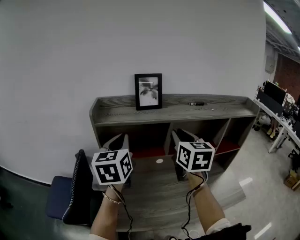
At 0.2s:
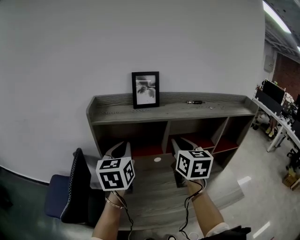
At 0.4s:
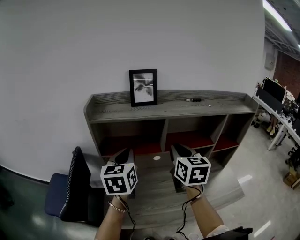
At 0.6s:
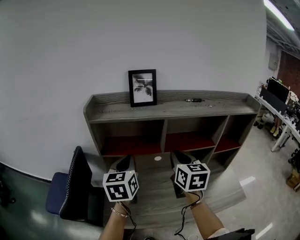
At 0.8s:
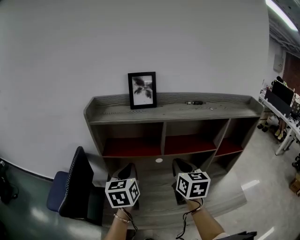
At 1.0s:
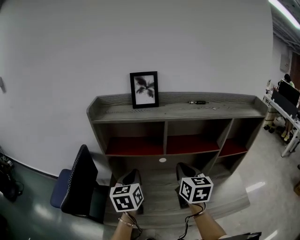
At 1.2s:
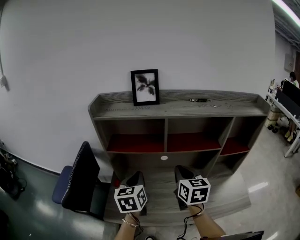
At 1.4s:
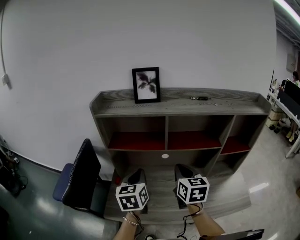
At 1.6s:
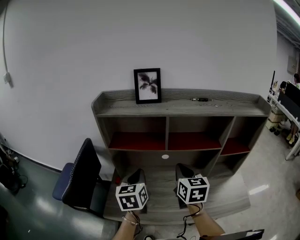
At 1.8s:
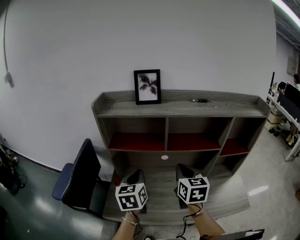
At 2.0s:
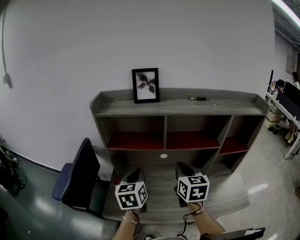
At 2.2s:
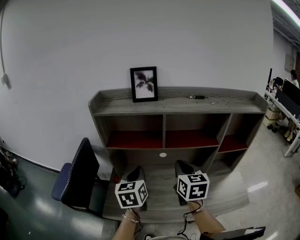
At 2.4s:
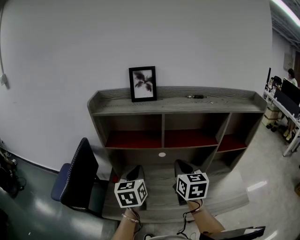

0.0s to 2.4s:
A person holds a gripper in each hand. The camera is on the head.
0.0s to 1.2s: Both grippers travel together downward and backward, roughly 20 cm.
1.2s to 2.4s: There are only small adjustments of the grippers.

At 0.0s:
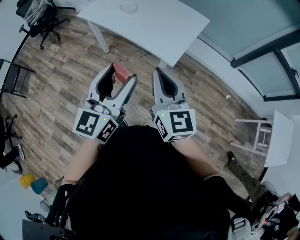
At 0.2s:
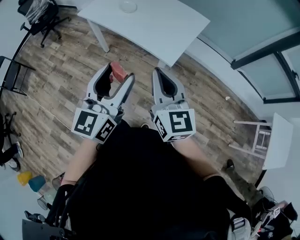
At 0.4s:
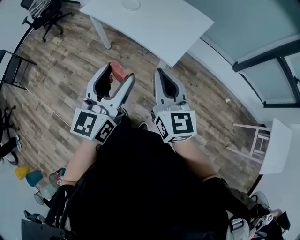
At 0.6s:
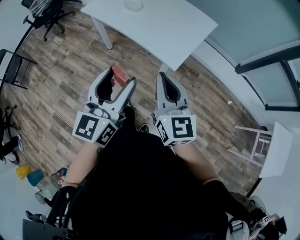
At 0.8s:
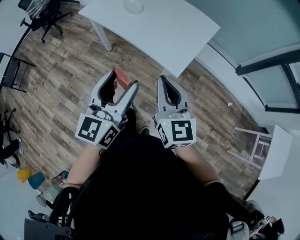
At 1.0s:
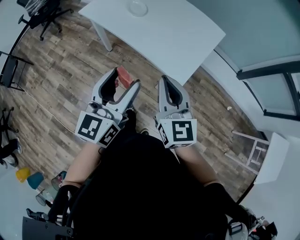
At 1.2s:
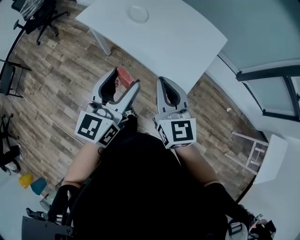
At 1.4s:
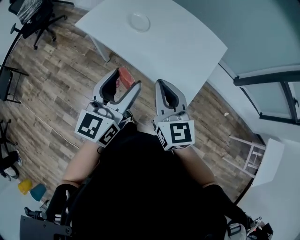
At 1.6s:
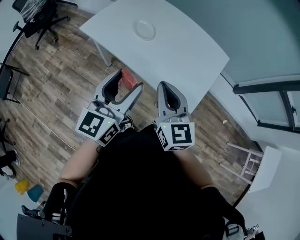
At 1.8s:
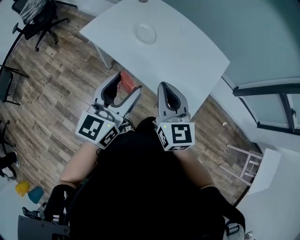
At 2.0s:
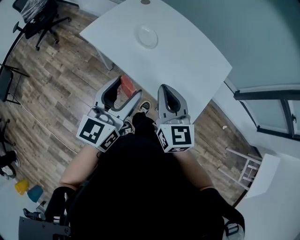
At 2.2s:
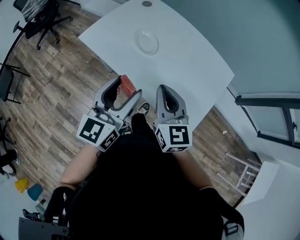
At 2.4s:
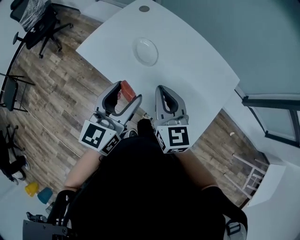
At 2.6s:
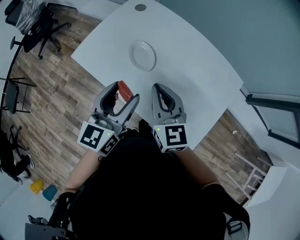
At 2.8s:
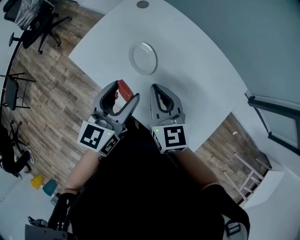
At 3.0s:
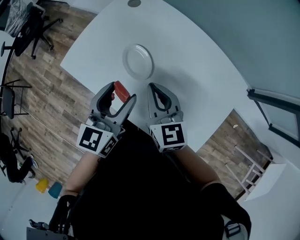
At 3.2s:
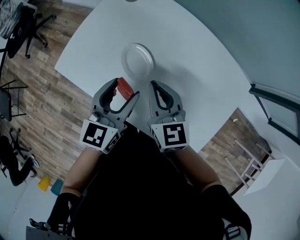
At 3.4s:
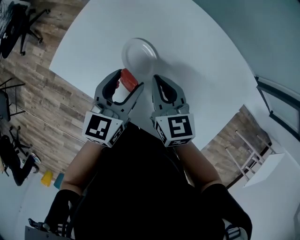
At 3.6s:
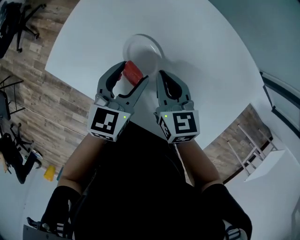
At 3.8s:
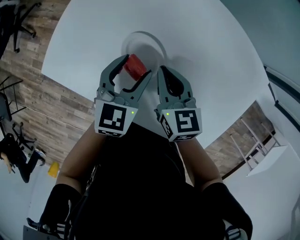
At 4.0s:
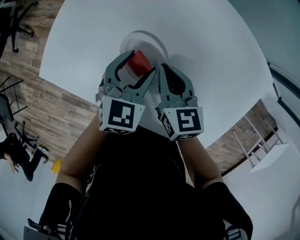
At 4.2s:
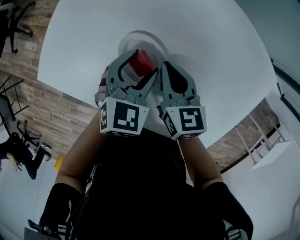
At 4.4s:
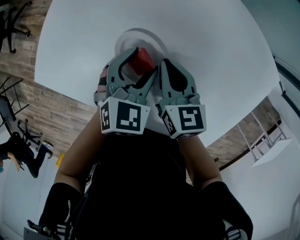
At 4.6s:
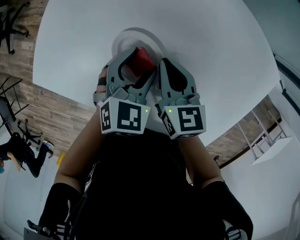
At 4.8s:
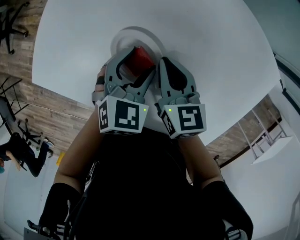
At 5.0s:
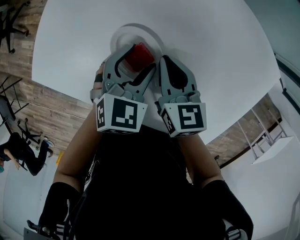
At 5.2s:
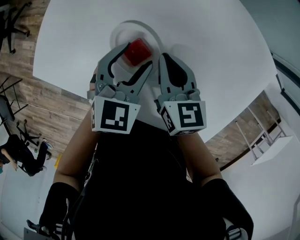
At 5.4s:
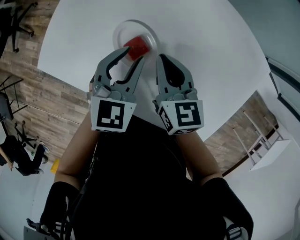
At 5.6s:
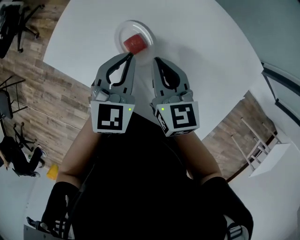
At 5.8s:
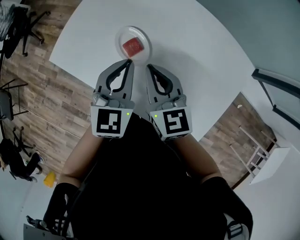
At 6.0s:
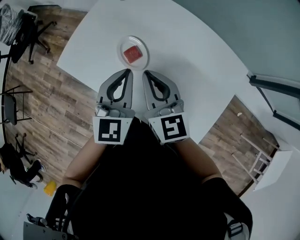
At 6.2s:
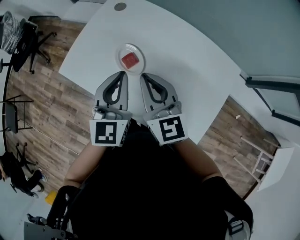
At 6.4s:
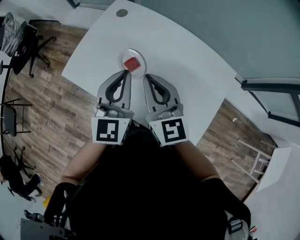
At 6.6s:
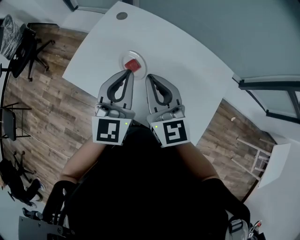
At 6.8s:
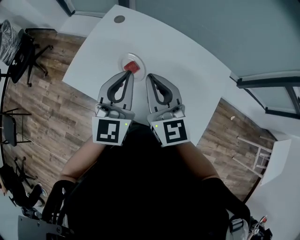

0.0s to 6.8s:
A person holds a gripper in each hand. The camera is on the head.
0.0s to 1.4s: The two grippers go some 20 cm forward.
1.4s to 2.8s: The grippers both shift forward by approximately 25 cm.
2.8s to 4.0s: The two grippers go approximately 20 cm downward and forward. The left gripper swivels approximately 40 degrees, while the right gripper changes its angle by about 20 degrees.
4.0s to 5.4s: The left gripper closes.
5.4s to 6.8s: The two grippers go some 25 cm upward and backward. The left gripper turns by about 30 degrees, and closes its fingers. Meanwhile the right gripper rotates about 30 degrees.

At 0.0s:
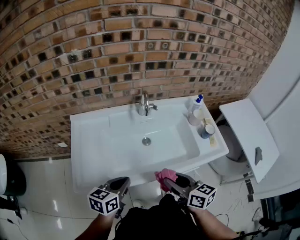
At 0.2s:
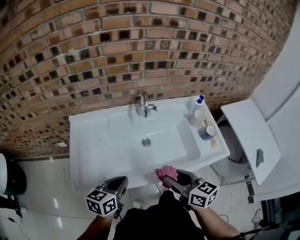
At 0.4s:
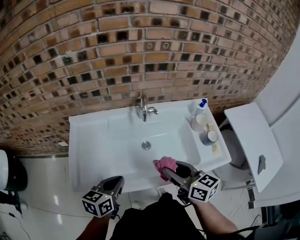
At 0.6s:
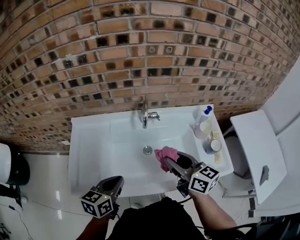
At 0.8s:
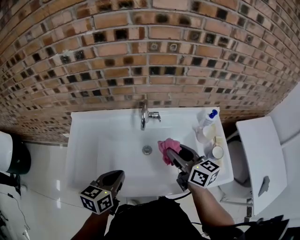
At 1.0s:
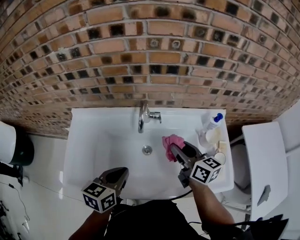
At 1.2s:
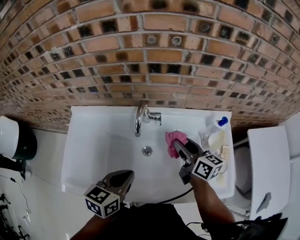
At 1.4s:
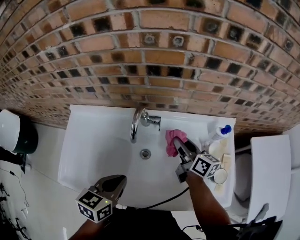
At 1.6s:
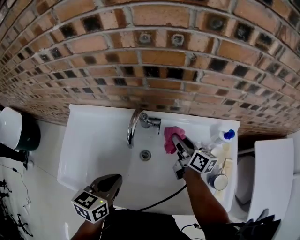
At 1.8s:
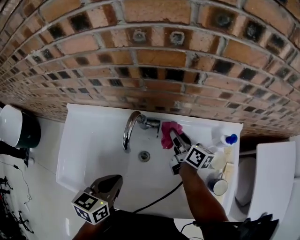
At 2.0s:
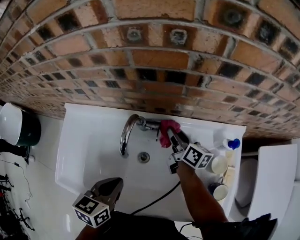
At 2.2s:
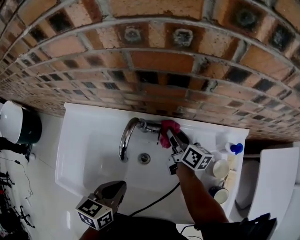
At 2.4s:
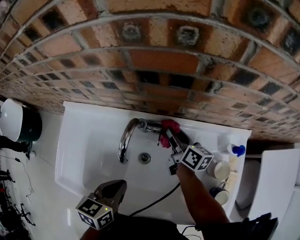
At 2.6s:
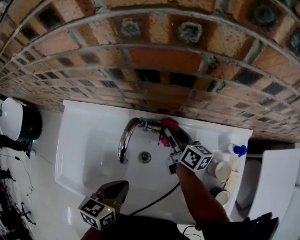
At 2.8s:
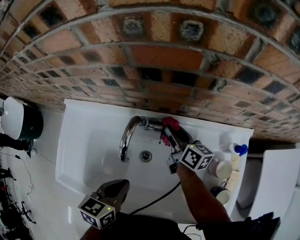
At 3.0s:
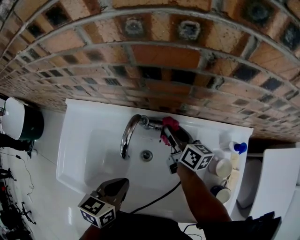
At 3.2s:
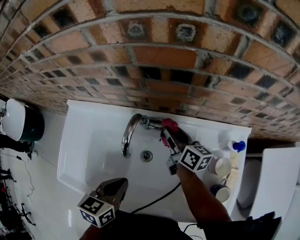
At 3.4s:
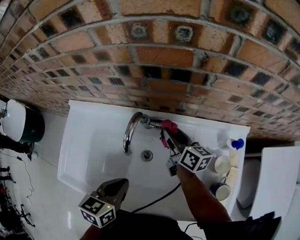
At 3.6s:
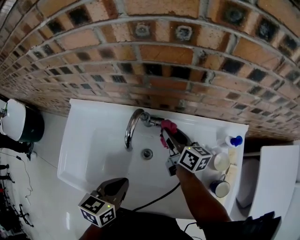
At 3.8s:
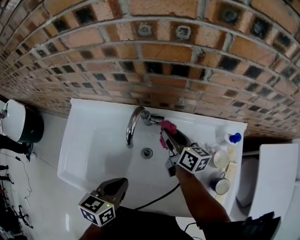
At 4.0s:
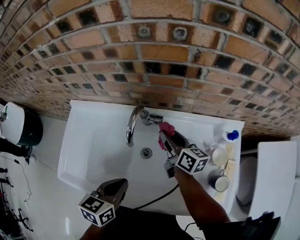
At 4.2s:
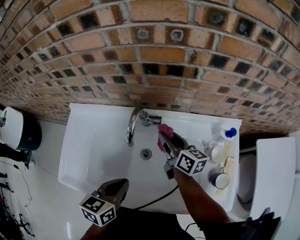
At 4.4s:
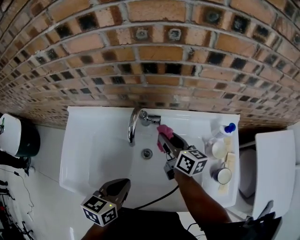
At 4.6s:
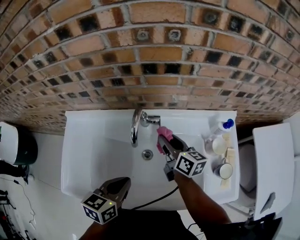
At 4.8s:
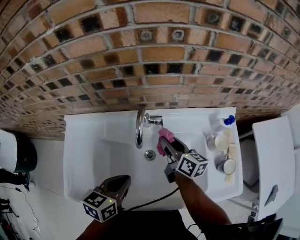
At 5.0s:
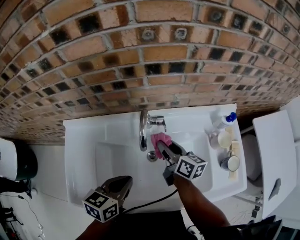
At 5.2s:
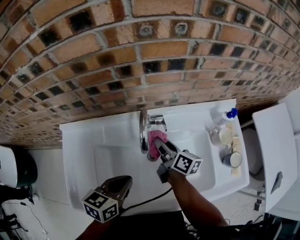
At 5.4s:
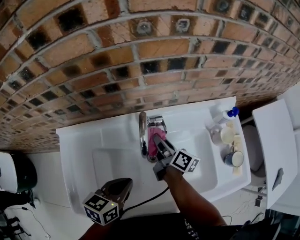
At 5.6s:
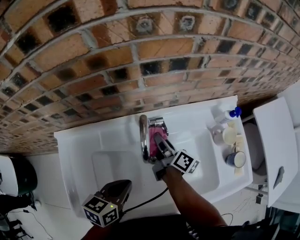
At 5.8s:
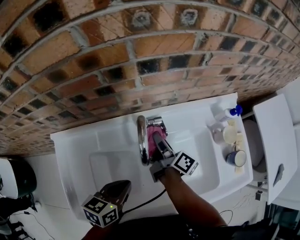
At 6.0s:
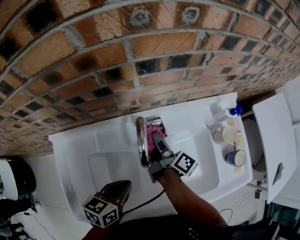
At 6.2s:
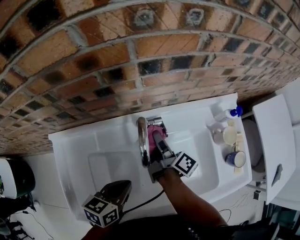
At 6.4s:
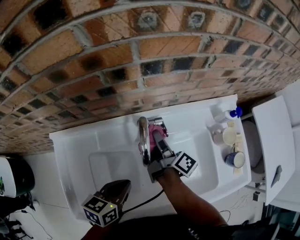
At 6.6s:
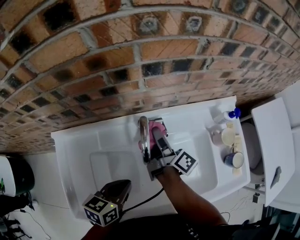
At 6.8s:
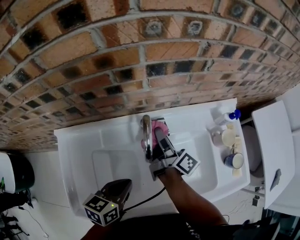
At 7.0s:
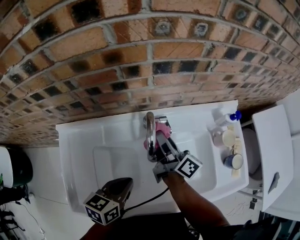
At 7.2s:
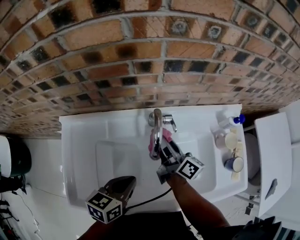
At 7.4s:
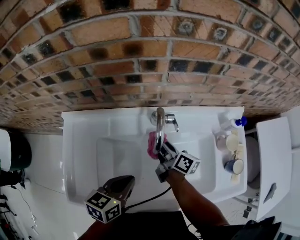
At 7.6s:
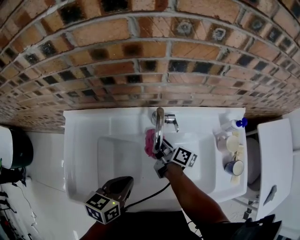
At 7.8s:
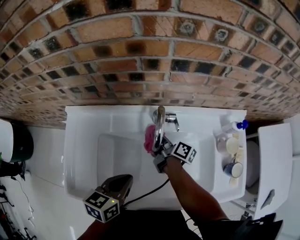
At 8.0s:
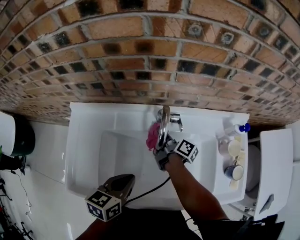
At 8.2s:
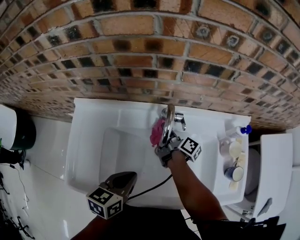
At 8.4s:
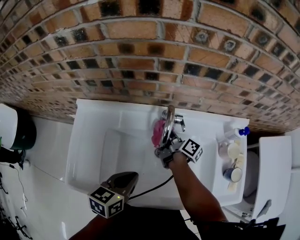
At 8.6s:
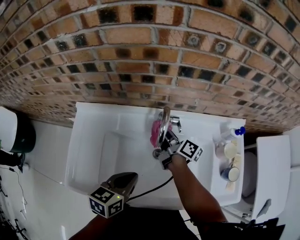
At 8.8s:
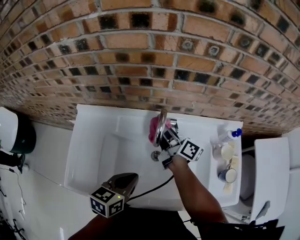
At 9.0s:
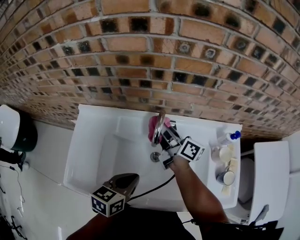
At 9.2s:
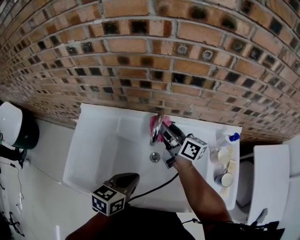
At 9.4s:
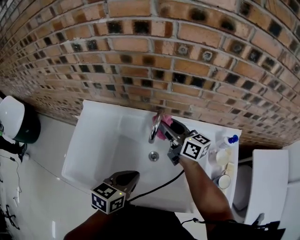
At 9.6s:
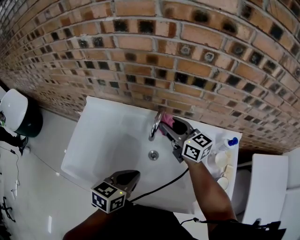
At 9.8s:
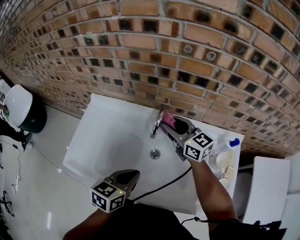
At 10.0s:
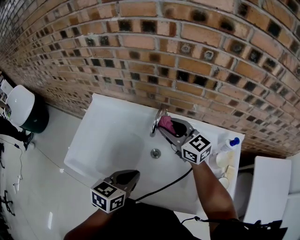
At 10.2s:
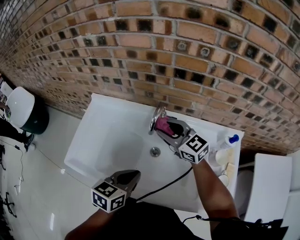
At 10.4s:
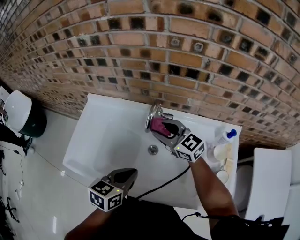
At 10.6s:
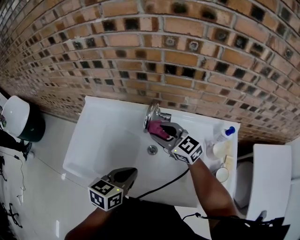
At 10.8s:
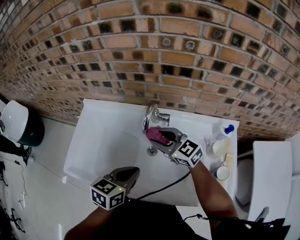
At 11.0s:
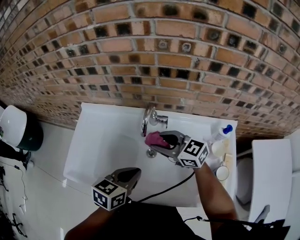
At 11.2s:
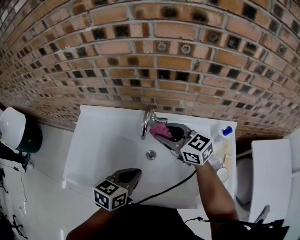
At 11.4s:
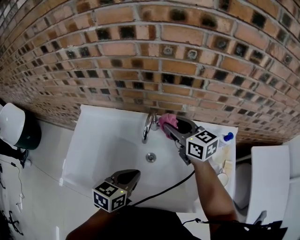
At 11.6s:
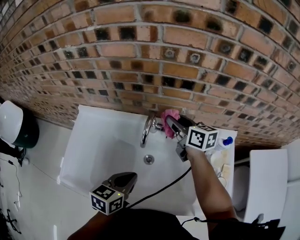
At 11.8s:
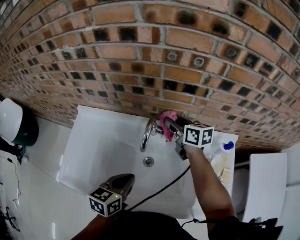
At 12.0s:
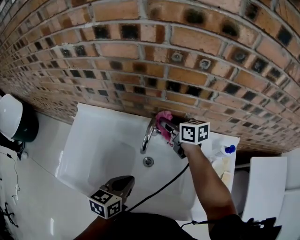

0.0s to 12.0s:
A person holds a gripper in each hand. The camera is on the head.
0.0s to 1.6s: The right gripper travels forward by roughly 40 cm. The left gripper goes about 20 cm forward and to the right, and turns by roughly 20 degrees.
1.6s to 3.0s: The right gripper shifts approximately 5 cm forward. Meanwhile the left gripper ends up approximately 5 cm from where it was.
3.0s to 4.4s: The left gripper shifts by some 5 cm, while the right gripper goes about 10 cm backward.
4.4s to 6.0s: The right gripper ends up roughly 10 cm from where it was, and twists approximately 40 degrees clockwise, seen from behind. The left gripper changes place by roughly 10 cm, and swivels roughly 20 degrees.
6.0s to 7.6s: The right gripper ends up about 5 cm from where it was, and turns by approximately 30 degrees.
7.6s to 9.0s: The left gripper shifts by some 5 cm, while the right gripper heads upward, covering some 15 cm.
9.0s to 10.4s: The left gripper moves about 5 cm, while the right gripper is displaced backward by some 10 cm, and rolls counterclockwise, seen from behind, by about 60 degrees.
10.4s to 12.0s: The right gripper travels forward and to the right by about 15 cm, and rotates some 40 degrees, while the left gripper shifts roughly 5 cm forward.

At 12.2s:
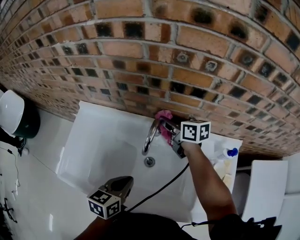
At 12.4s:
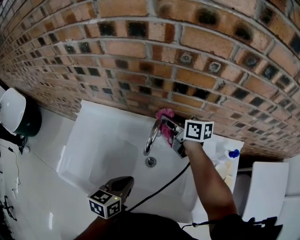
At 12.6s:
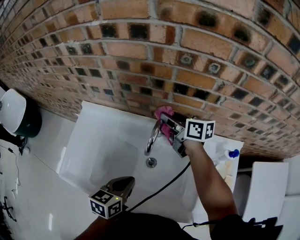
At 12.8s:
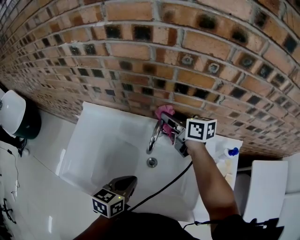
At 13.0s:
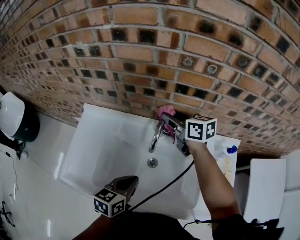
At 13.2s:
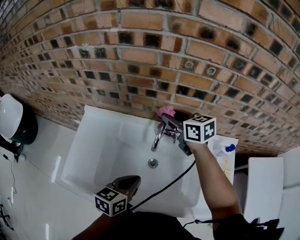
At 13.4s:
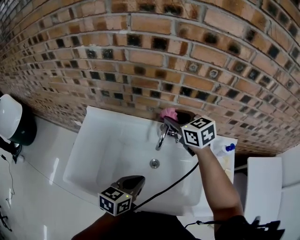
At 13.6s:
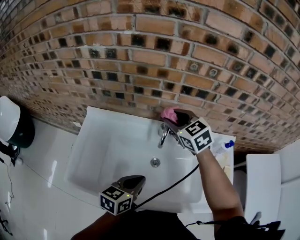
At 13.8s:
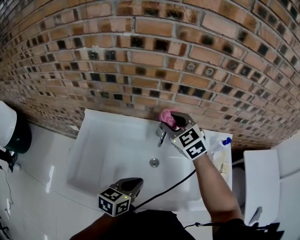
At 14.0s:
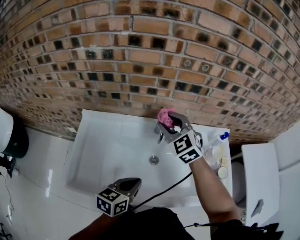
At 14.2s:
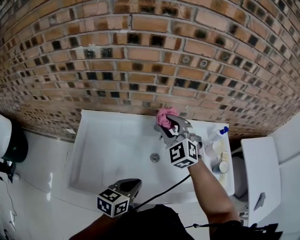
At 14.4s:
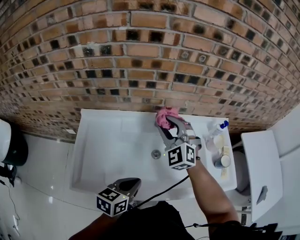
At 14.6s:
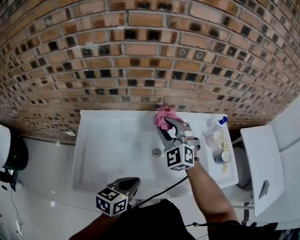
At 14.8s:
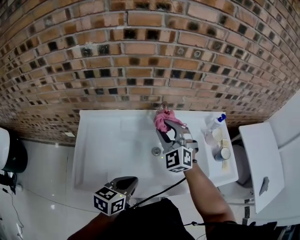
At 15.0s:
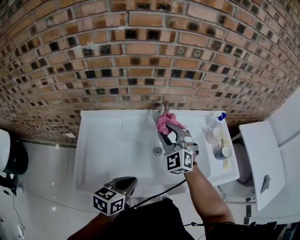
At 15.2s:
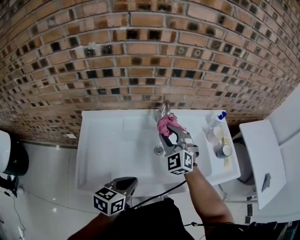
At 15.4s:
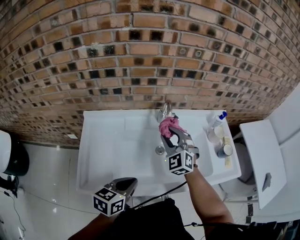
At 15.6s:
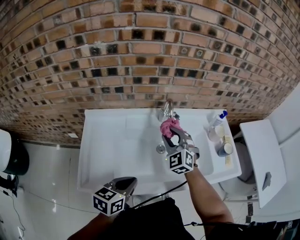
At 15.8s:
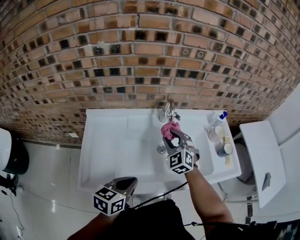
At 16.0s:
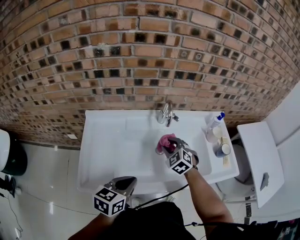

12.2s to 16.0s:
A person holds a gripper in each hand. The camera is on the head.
12.2s to 13.4s: The right gripper moves upward, about 10 cm, and turns by roughly 30 degrees.
13.4s to 14.8s: The right gripper moves backward, about 15 cm, and swivels about 50 degrees. Meanwhile the left gripper moves backward and to the left, approximately 10 cm.
14.8s to 16.0s: The left gripper moves approximately 5 cm. The right gripper heads downward, covering about 10 cm, and swivels roughly 30 degrees.
